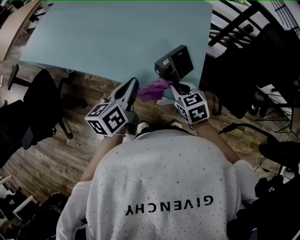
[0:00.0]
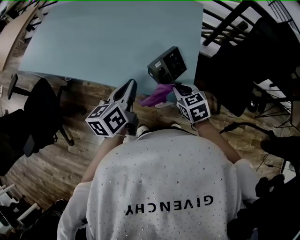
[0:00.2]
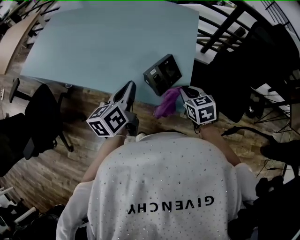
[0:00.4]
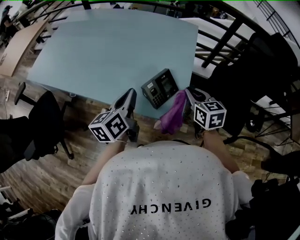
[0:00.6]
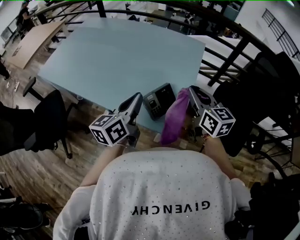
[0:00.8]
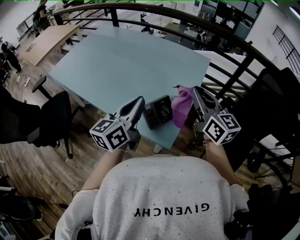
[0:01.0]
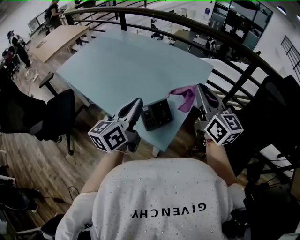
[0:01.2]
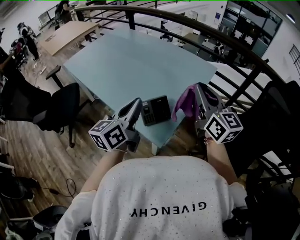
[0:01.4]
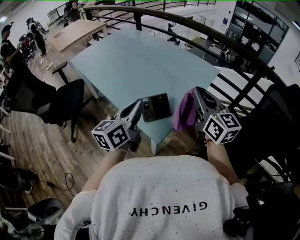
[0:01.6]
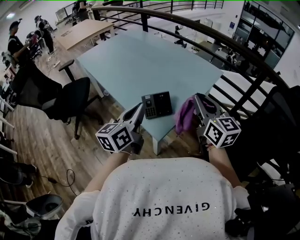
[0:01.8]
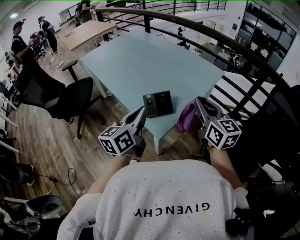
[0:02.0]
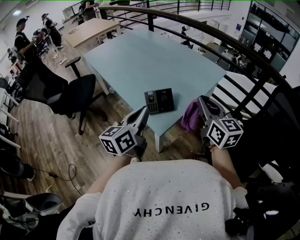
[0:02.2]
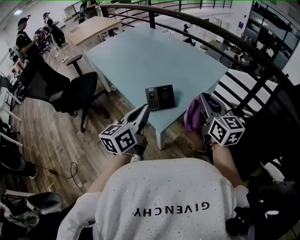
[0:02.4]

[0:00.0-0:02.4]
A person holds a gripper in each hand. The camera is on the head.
0.0 to 1.2 s: The right gripper shifts some 35 cm upward and to the right, and angles its fingers upward, by about 50 degrees. Meanwhile the left gripper heads upward and to the right, covering about 20 cm, and changes its angle by some 20 degrees.
1.2 to 2.4 s: The right gripper heads backward and downward, covering approximately 10 cm. Meanwhile the left gripper is displaced backward by about 15 cm.

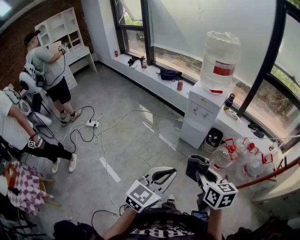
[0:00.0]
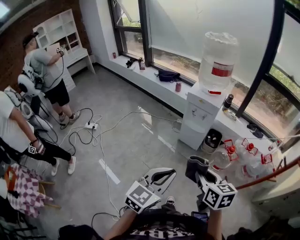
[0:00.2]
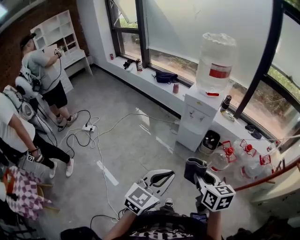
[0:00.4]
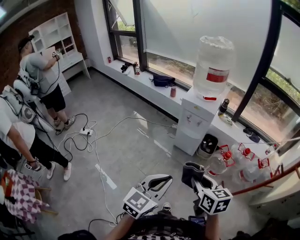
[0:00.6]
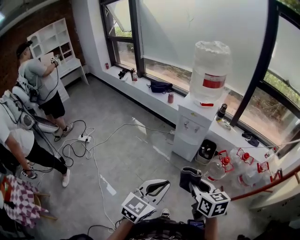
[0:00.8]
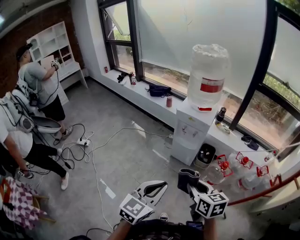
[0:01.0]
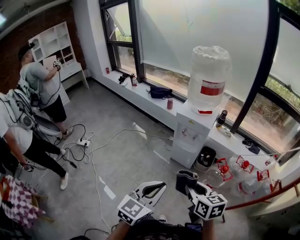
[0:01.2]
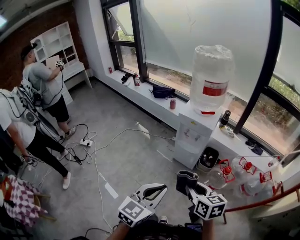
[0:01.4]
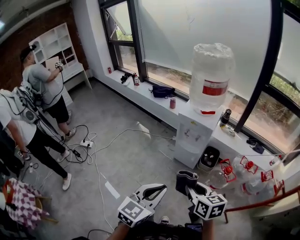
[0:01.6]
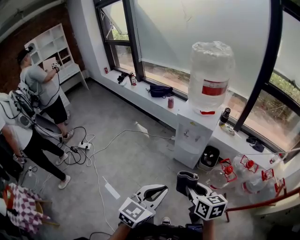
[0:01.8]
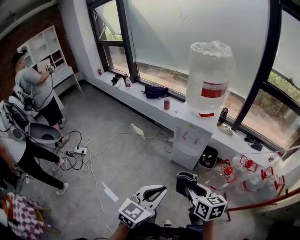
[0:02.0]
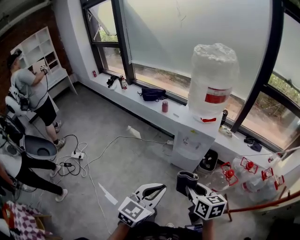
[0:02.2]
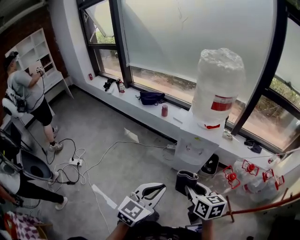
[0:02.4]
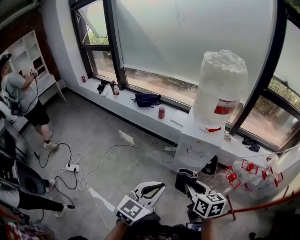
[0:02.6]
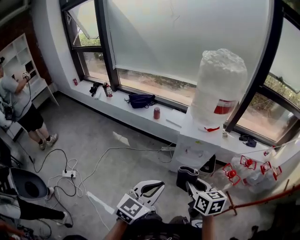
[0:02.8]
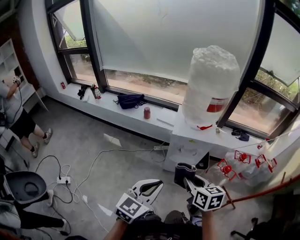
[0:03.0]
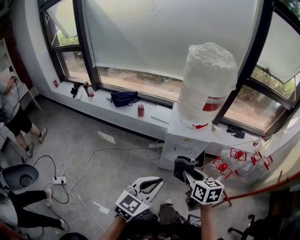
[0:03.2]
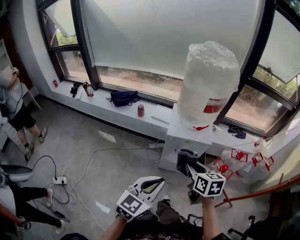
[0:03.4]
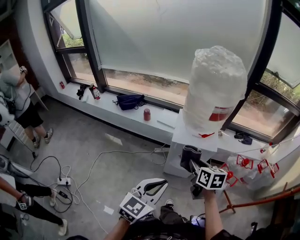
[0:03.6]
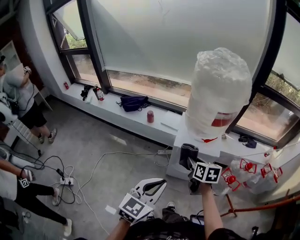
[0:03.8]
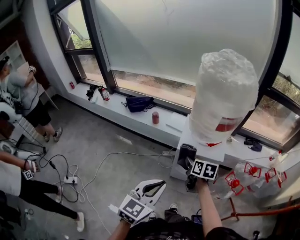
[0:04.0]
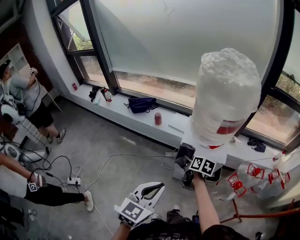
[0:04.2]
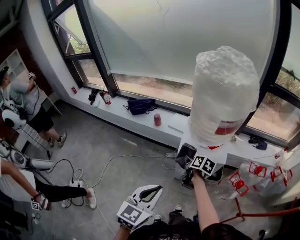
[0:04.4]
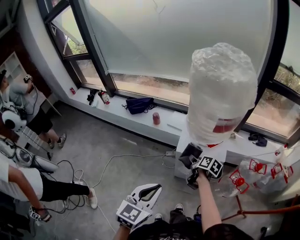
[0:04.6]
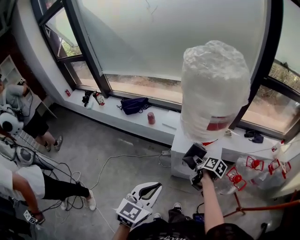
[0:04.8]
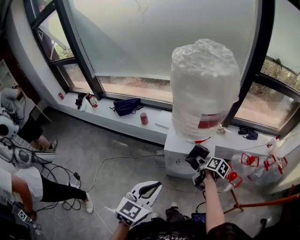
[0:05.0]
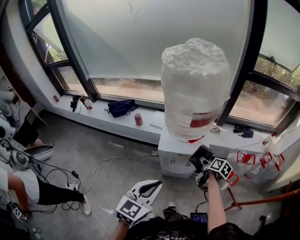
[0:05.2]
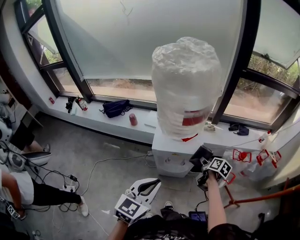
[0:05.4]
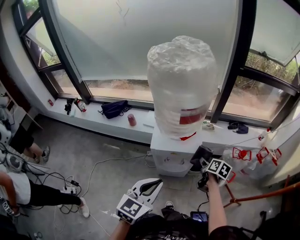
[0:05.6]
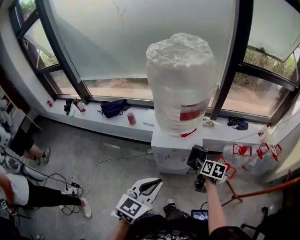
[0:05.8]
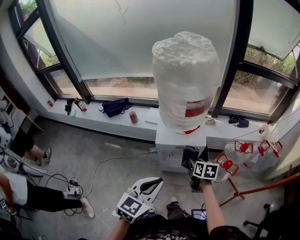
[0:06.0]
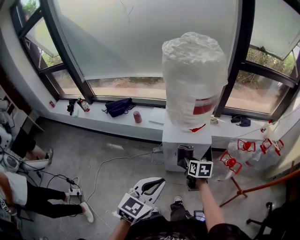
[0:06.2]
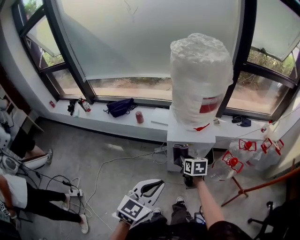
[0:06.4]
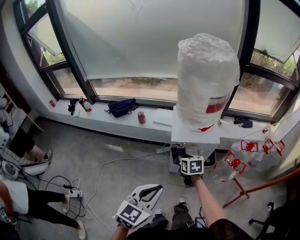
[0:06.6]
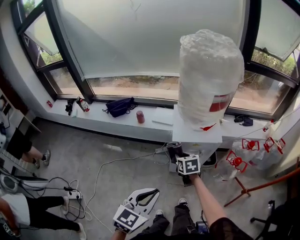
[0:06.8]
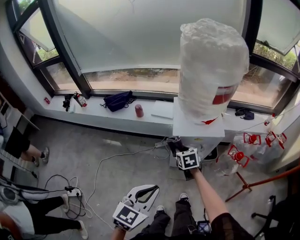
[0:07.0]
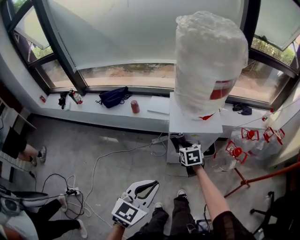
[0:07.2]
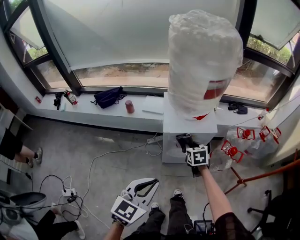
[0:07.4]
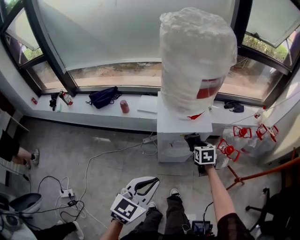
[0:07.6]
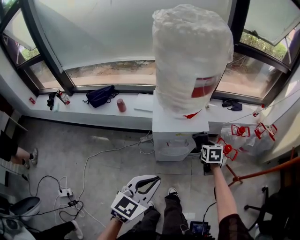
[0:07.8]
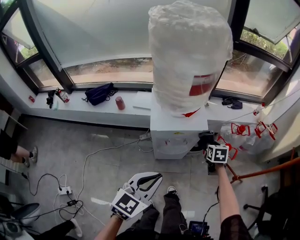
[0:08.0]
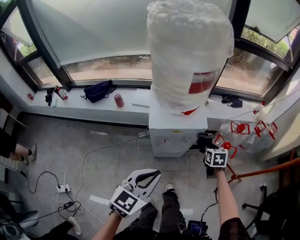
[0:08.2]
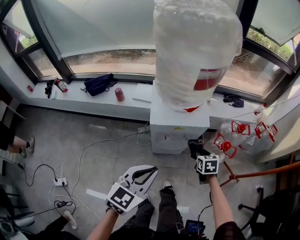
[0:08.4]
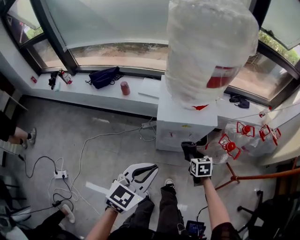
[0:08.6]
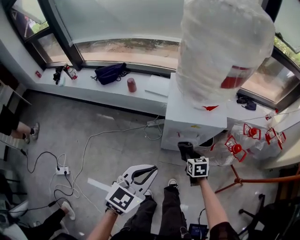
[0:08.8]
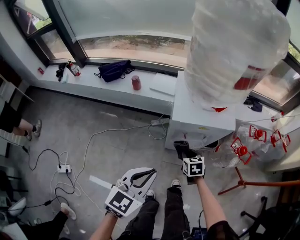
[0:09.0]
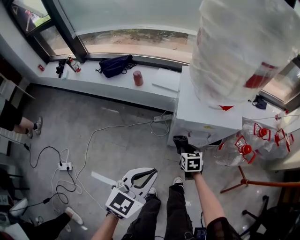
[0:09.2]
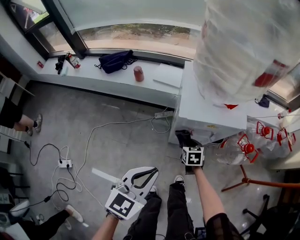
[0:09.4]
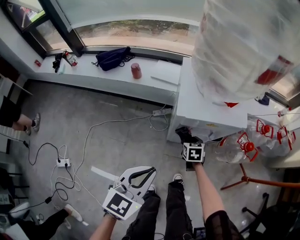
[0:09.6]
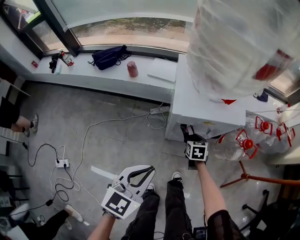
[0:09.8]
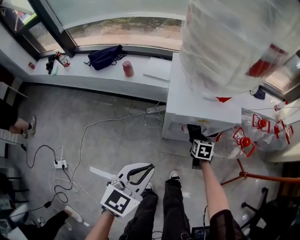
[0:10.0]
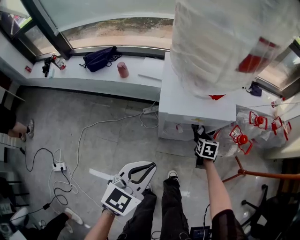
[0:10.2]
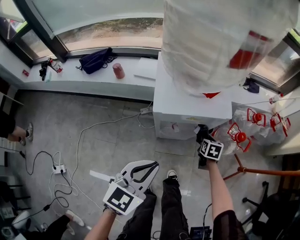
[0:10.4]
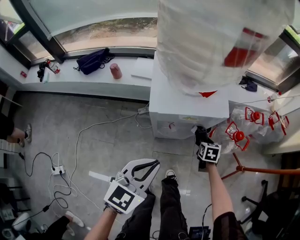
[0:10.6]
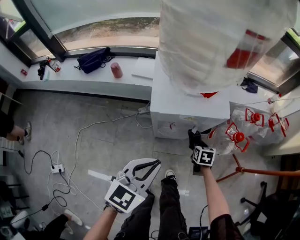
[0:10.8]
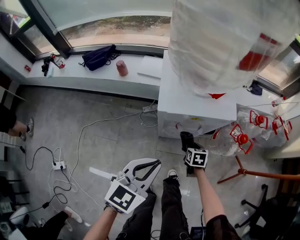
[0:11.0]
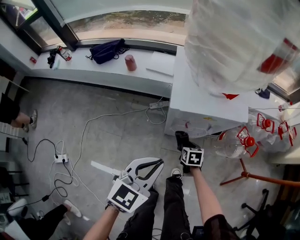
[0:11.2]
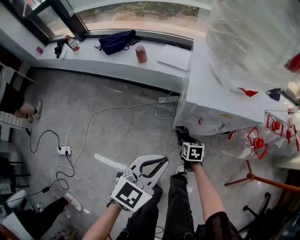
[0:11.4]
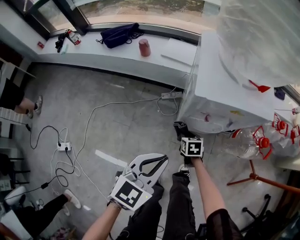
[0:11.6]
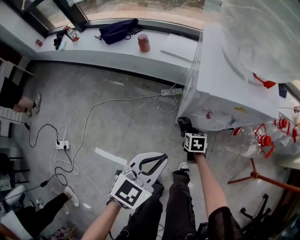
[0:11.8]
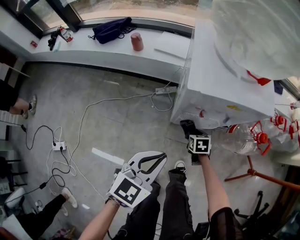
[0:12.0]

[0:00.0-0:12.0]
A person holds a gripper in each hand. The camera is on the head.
0.0 to 1.6 s: Both grippers move forward, approximately 15 cm.
1.6 to 3.0 s: The grippers both shift forward and to the left by some 30 cm. The left gripper turns by roughly 20 degrees. The right gripper rotates about 20 degrees.
3.0 to 4.4 s: The right gripper heads forward and downward, covering approximately 30 cm, and rotates some 30 degrees. The left gripper heads forward, covering about 15 cm.
4.4 to 6.0 s: The left gripper goes roughly 10 cm to the right; the right gripper is displaced to the right and backward by some 15 cm, and turns by roughly 20 degrees.
6.0 to 7.6 s: The right gripper travels downward by some 5 cm, goes to the left and returns, some 20 cm each way, and changes its angle by about 20 degrees. Meanwhile the left gripper travels to the left and downward by approximately 10 cm.
7.6 to 9.0 s: The right gripper heads downward, to the left and backward, covering roughly 20 cm. Meanwhile the left gripper shifts about 10 cm downward.
9.0 to 10.4 s: The right gripper is displaced to the right and forward by approximately 20 cm, and rotates roughly 30 degrees. The left gripper shifts roughly 5 cm forward.
10.4 to 12.0 s: The right gripper shifts approximately 25 cm to the left, downward and backward, and turns by some 20 degrees. Meanwhile the left gripper moves downward, some 10 cm.

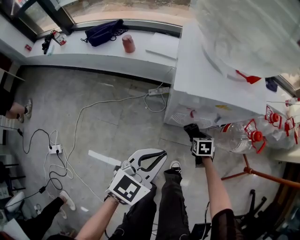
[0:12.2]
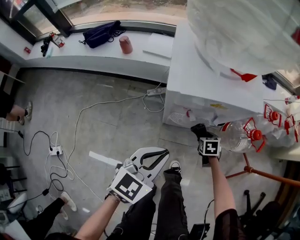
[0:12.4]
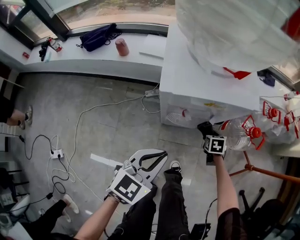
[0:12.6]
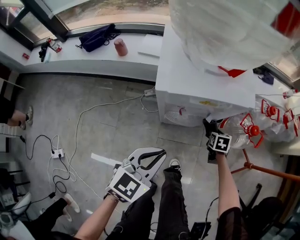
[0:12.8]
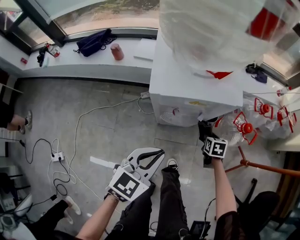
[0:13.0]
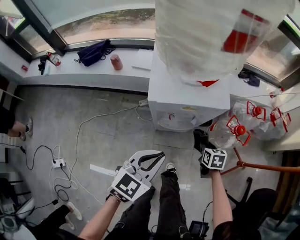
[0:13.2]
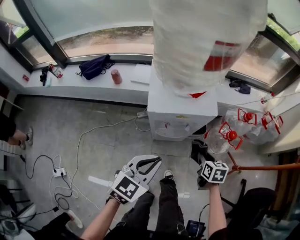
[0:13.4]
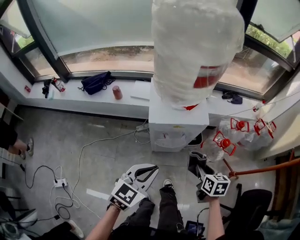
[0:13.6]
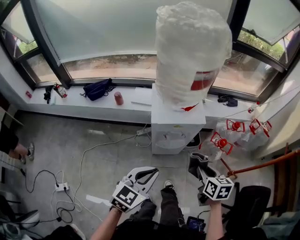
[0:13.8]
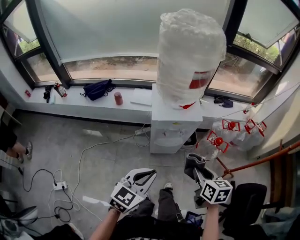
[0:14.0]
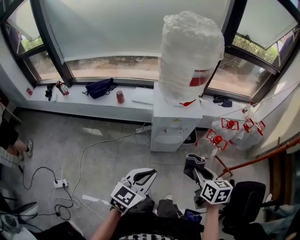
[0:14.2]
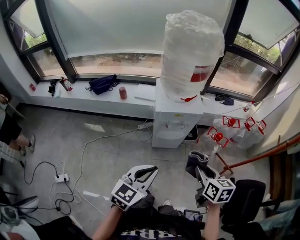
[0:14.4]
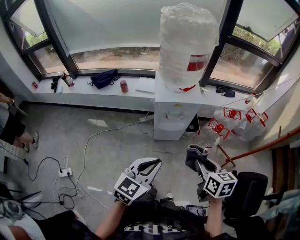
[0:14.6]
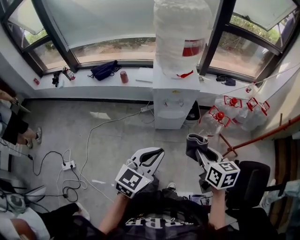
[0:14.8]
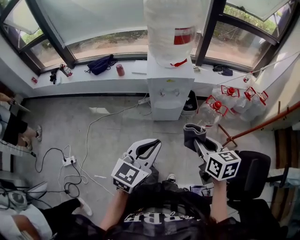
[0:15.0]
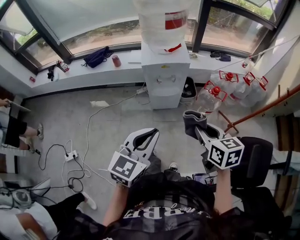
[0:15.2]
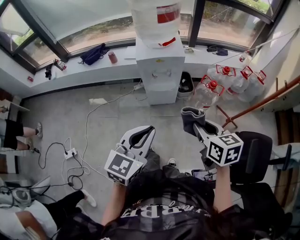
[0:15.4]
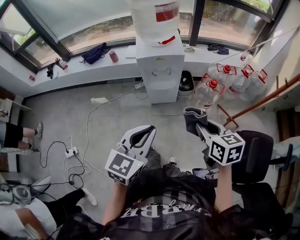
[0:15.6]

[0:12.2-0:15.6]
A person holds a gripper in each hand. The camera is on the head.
12.2 to 13.8 s: The right gripper moves upward, about 40 cm, and changes its angle by approximately 30 degrees; the left gripper goes roughly 20 cm upward.
13.8 to 15.6 s: The right gripper heads backward and upward, covering roughly 20 cm. The left gripper travels backward, to the right and upward by some 25 cm.

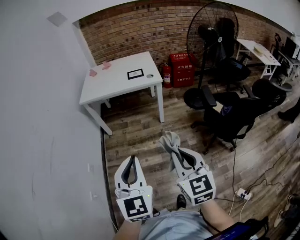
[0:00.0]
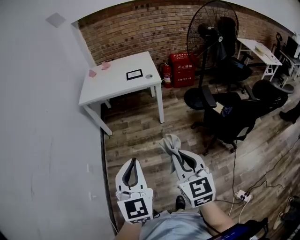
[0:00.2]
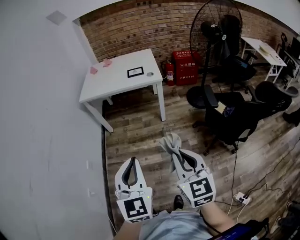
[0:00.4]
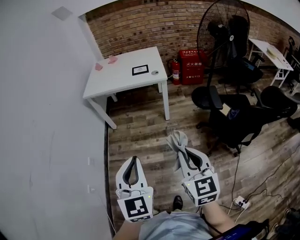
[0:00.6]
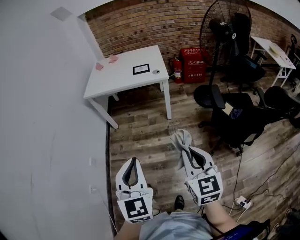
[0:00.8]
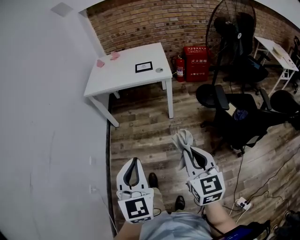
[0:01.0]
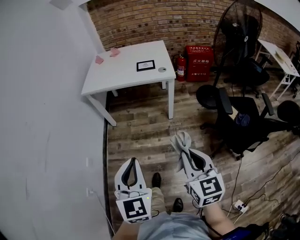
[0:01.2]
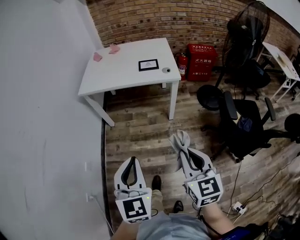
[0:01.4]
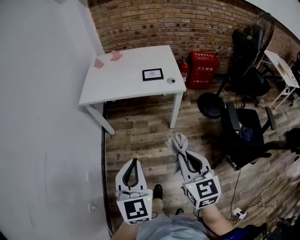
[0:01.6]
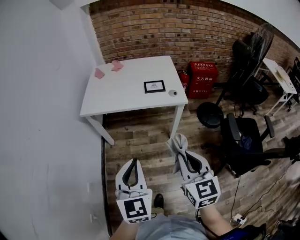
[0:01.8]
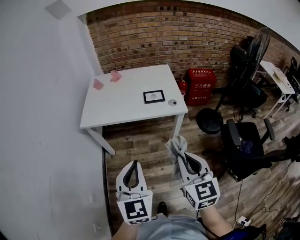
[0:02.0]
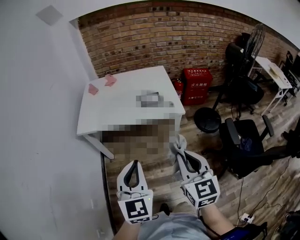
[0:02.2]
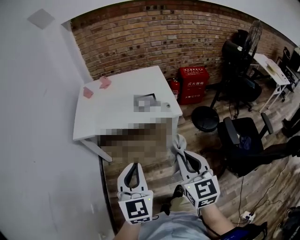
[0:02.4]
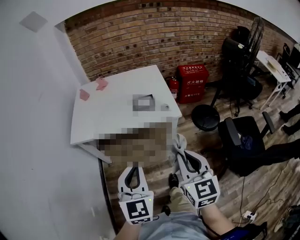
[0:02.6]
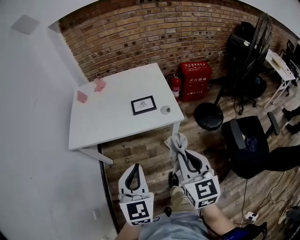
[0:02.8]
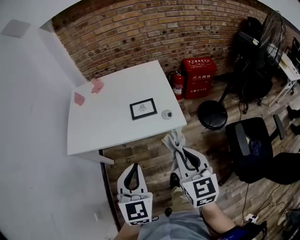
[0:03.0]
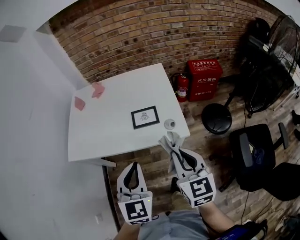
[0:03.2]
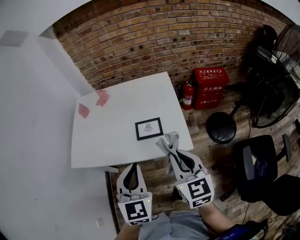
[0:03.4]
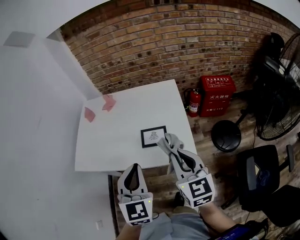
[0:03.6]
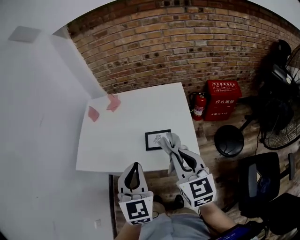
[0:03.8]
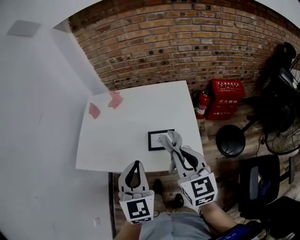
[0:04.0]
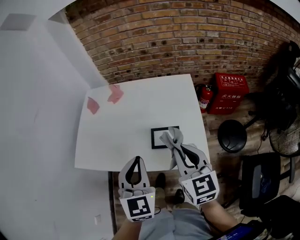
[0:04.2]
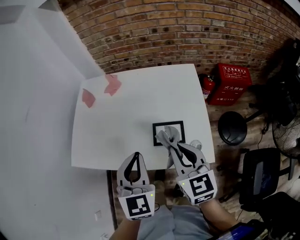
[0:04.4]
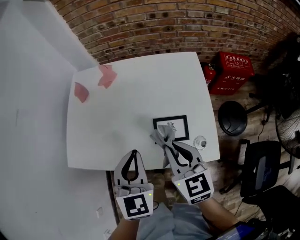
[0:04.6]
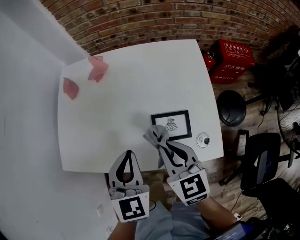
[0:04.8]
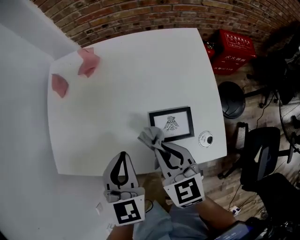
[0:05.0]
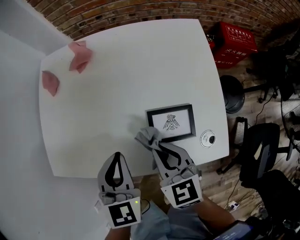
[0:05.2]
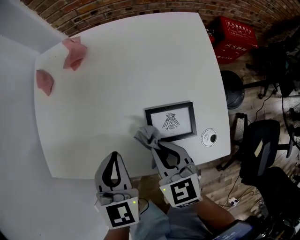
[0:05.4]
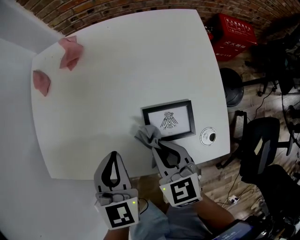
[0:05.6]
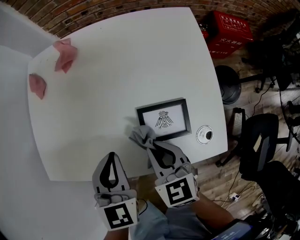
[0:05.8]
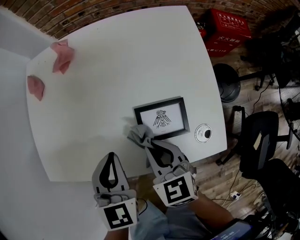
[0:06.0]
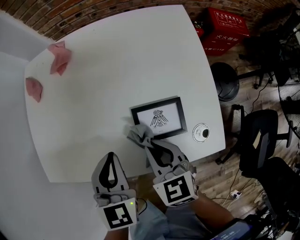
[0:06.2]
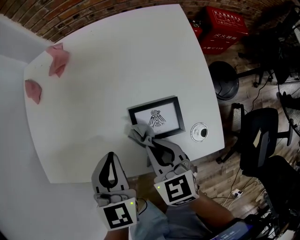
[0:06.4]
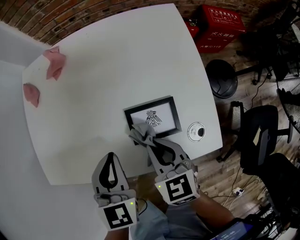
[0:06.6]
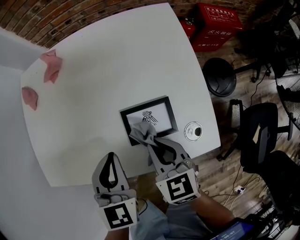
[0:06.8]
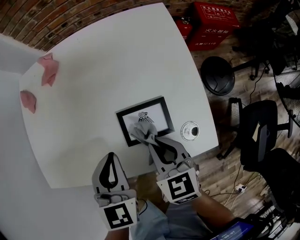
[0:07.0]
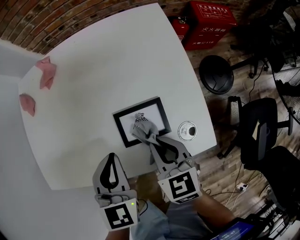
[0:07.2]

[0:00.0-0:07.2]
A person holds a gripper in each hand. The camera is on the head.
0.0 to 1.4 s: The right gripper shifts some 20 cm forward, while the left gripper shifts some 20 cm forward and downward.
1.4 to 2.8 s: The two grippers go approximately 30 cm forward.
2.8 to 4.4 s: The grippers both shift forward by about 35 cm.
4.4 to 5.8 s: The left gripper travels downward and forward by some 15 cm. The right gripper shifts approximately 20 cm downward.
5.8 to 7.2 s: Both grippers move to the right, some 5 cm.
